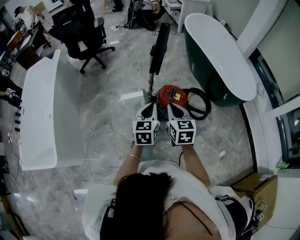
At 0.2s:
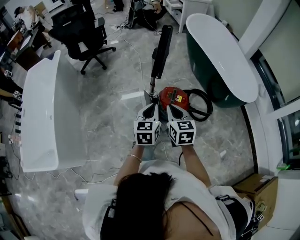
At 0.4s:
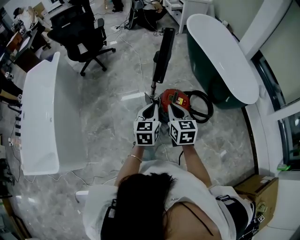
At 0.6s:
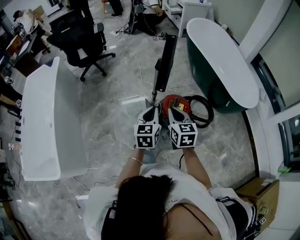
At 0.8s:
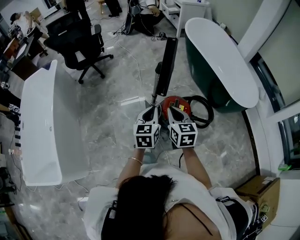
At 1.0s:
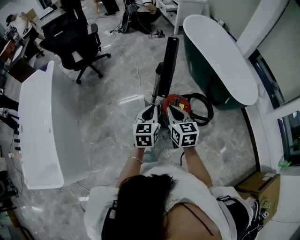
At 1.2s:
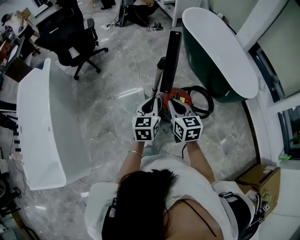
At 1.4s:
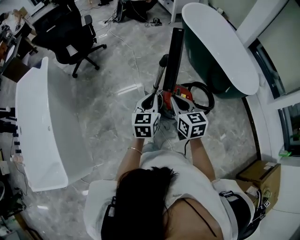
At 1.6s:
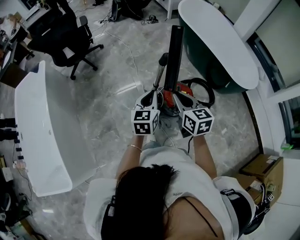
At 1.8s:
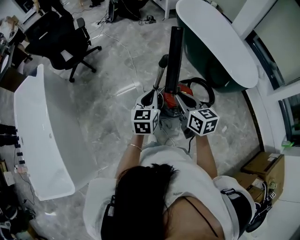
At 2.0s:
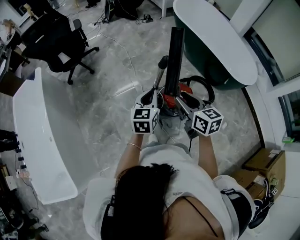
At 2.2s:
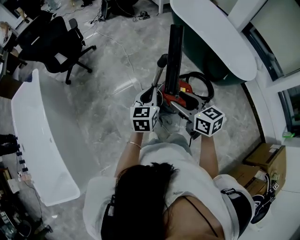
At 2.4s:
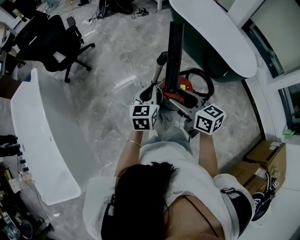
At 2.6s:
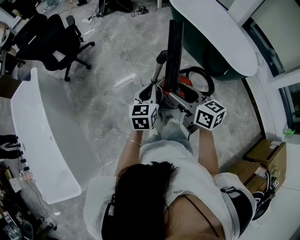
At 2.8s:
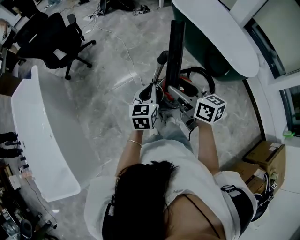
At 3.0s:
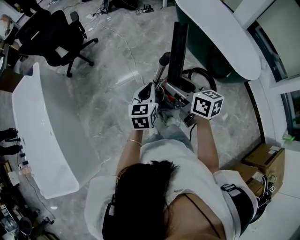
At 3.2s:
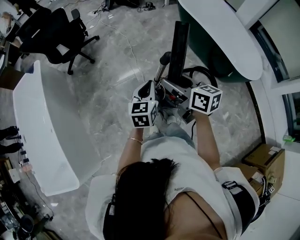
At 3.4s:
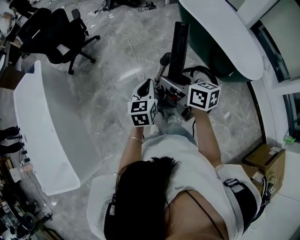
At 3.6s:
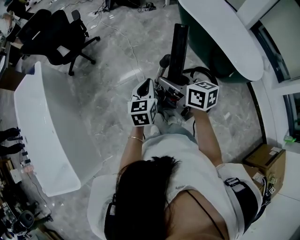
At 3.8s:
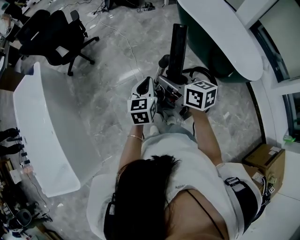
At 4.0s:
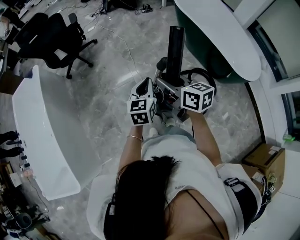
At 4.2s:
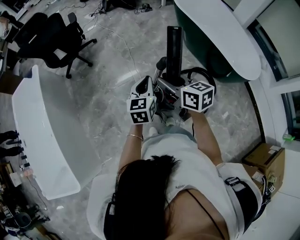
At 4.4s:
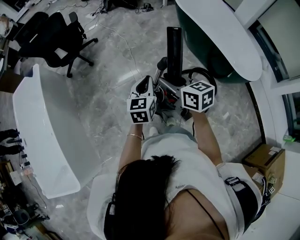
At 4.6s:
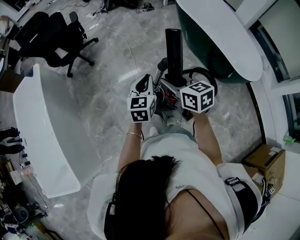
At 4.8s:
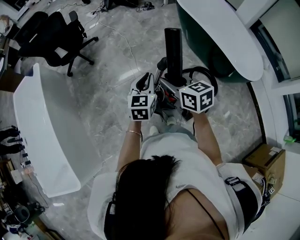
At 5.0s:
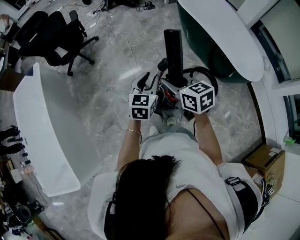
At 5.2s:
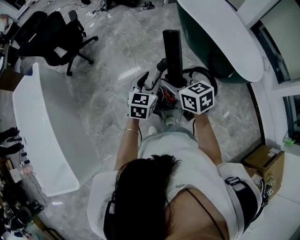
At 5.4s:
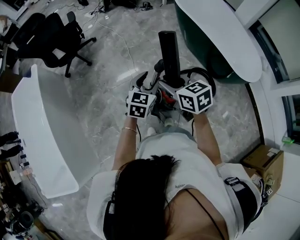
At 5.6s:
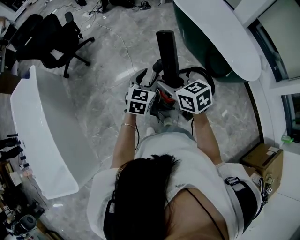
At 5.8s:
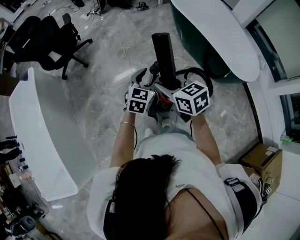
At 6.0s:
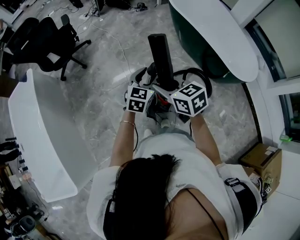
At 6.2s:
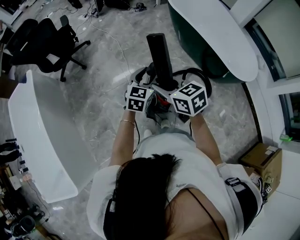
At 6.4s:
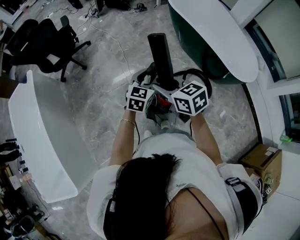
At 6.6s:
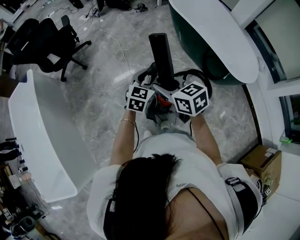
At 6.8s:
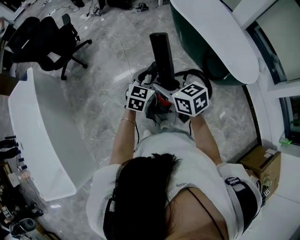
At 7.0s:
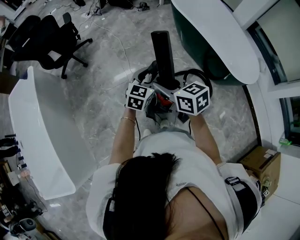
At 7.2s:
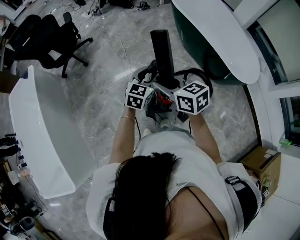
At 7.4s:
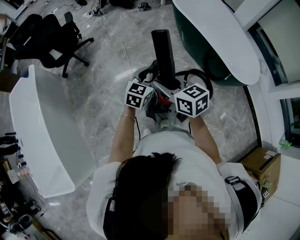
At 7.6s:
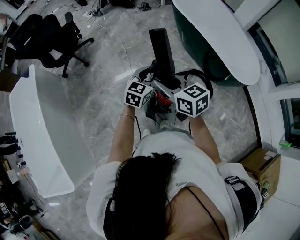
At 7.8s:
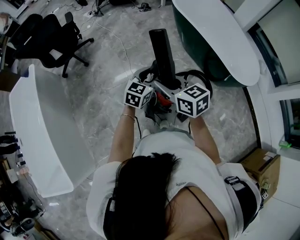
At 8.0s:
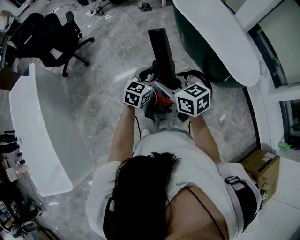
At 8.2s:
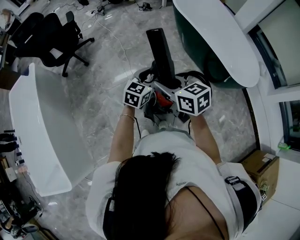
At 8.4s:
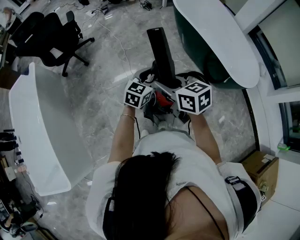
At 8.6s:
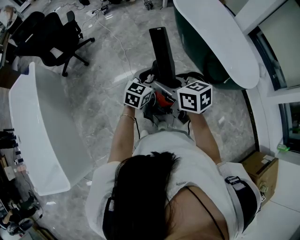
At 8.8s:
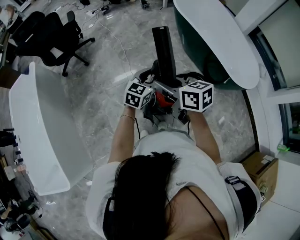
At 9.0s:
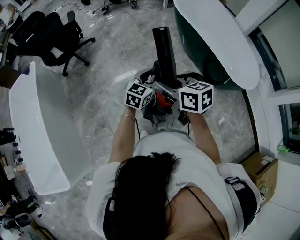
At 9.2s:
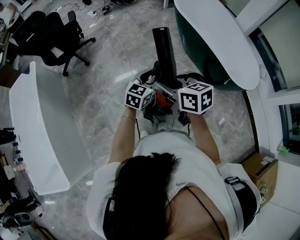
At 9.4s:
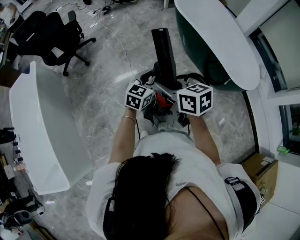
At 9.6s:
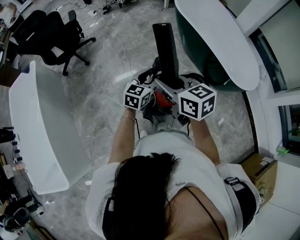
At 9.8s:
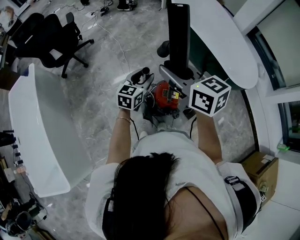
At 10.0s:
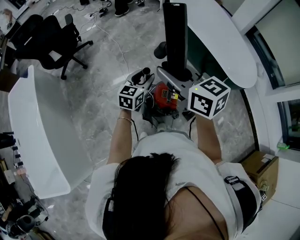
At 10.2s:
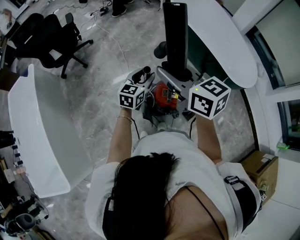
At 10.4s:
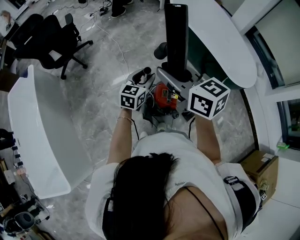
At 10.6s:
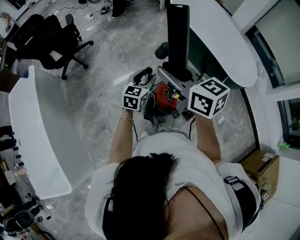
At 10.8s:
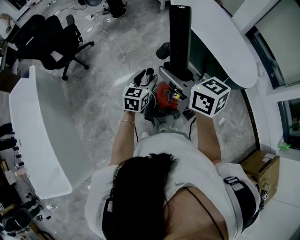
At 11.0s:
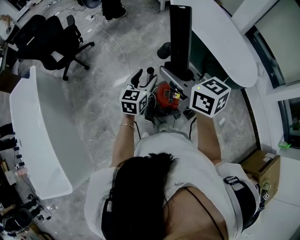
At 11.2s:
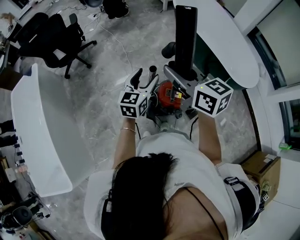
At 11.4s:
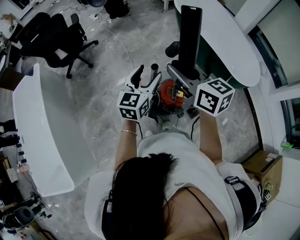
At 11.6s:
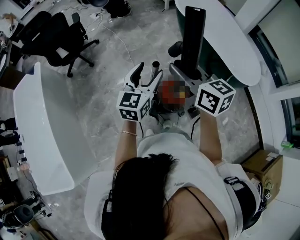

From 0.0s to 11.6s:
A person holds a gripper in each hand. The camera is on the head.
From 0.0s to 1.4s: The two grippers go some 15 cm forward and to the left.
From 1.4s to 2.8s: The grippers both shift forward by approximately 5 cm. The right gripper turns by some 20 degrees, and opens up.
From 2.8s to 4.4s: The two grippers go some 5 cm forward. The right gripper closes its fingers.
From 4.4s to 5.8s: The left gripper shifts approximately 5 cm to the right, rotates approximately 20 degrees, and opens up.
From 5.8s to 8.8s: The grippers make only small movements.
From 8.8s to 10.2s: The right gripper shifts roughly 10 cm upward.
From 10.2s to 11.6s: The left gripper is displaced upward and backward by some 15 cm, and opens.

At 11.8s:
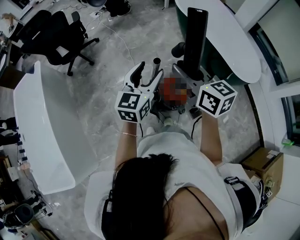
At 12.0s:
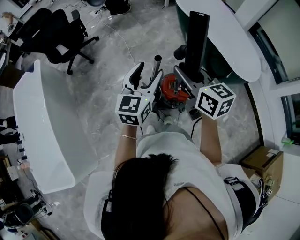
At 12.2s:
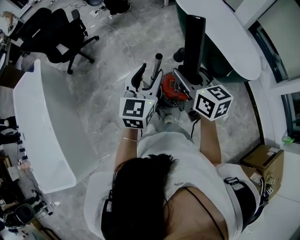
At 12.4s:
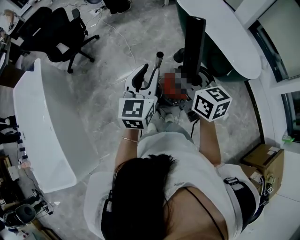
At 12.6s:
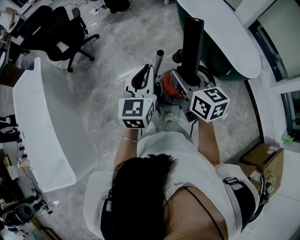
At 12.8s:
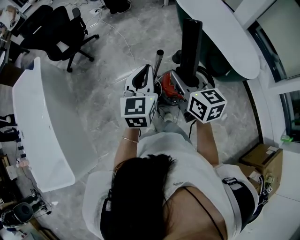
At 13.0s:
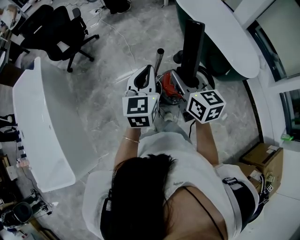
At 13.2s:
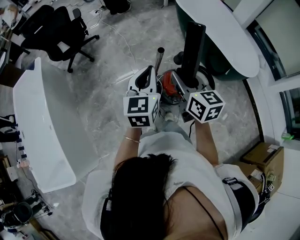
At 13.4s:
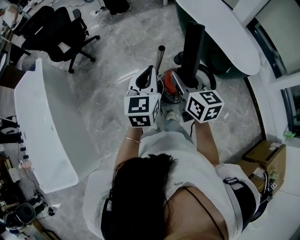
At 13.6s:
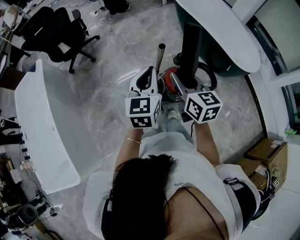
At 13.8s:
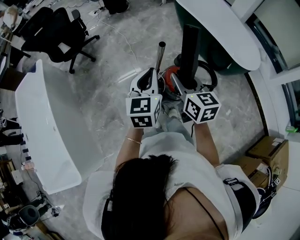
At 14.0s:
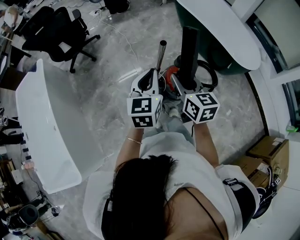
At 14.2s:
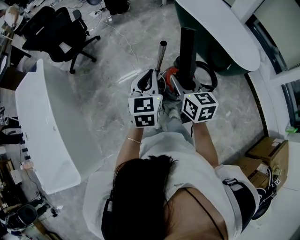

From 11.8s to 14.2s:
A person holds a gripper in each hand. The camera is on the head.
From 11.8s to 13.0s: The grippers both shift backward by roughly 5 cm. The left gripper closes its fingers.
From 13.0s to 14.2s: The left gripper shifts by some 5 cm, while the right gripper changes place by some 5 cm.

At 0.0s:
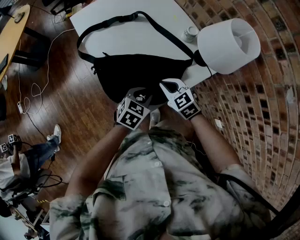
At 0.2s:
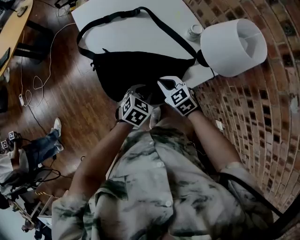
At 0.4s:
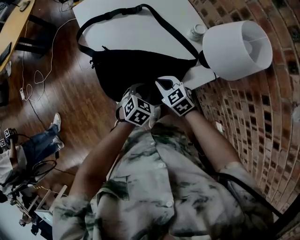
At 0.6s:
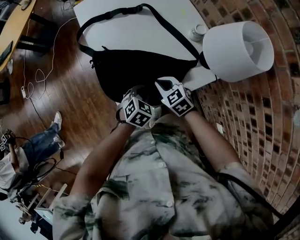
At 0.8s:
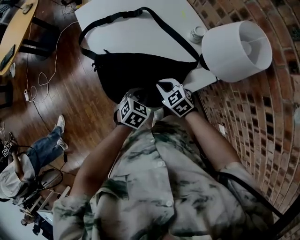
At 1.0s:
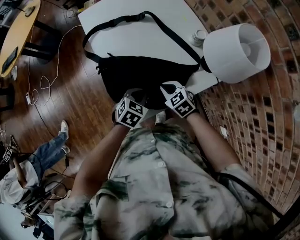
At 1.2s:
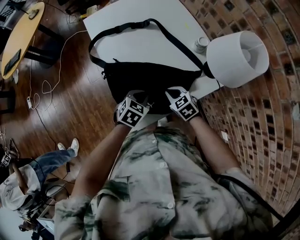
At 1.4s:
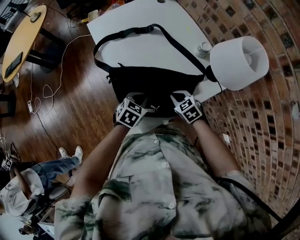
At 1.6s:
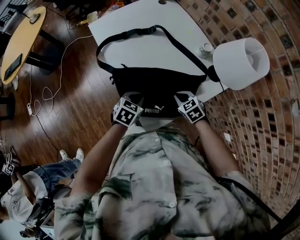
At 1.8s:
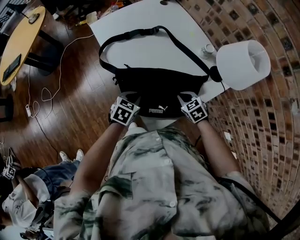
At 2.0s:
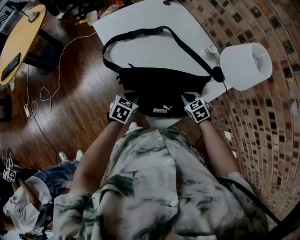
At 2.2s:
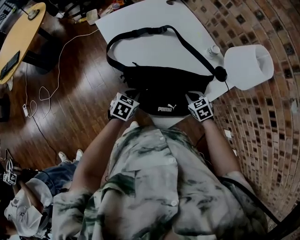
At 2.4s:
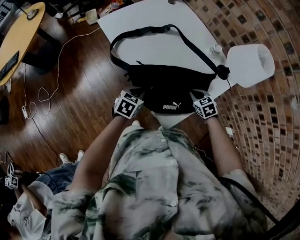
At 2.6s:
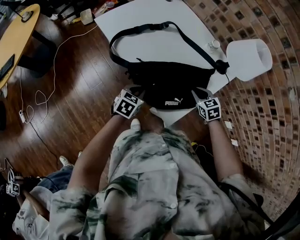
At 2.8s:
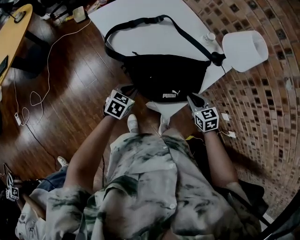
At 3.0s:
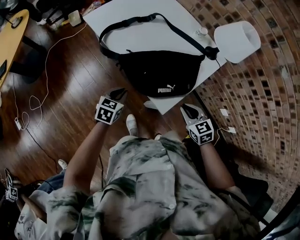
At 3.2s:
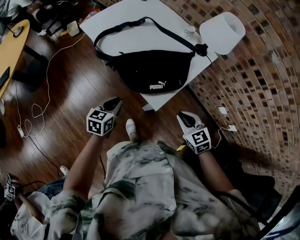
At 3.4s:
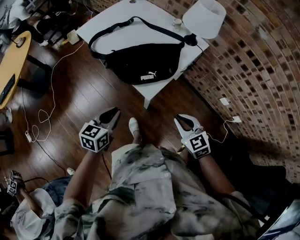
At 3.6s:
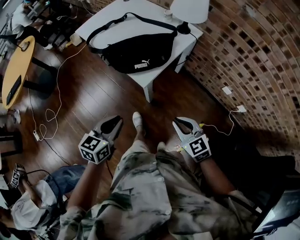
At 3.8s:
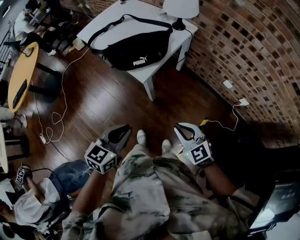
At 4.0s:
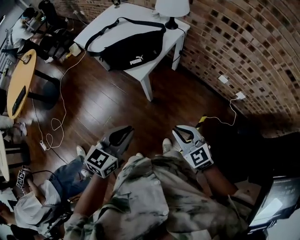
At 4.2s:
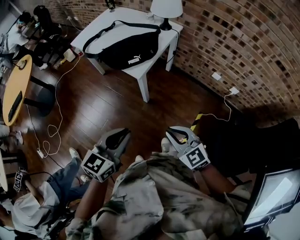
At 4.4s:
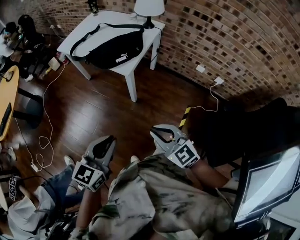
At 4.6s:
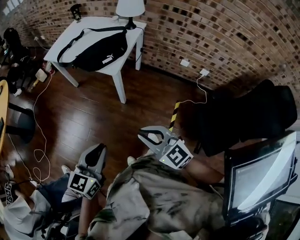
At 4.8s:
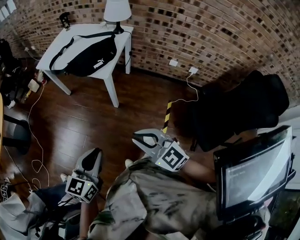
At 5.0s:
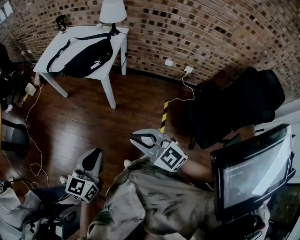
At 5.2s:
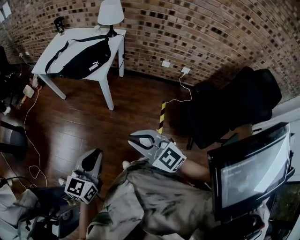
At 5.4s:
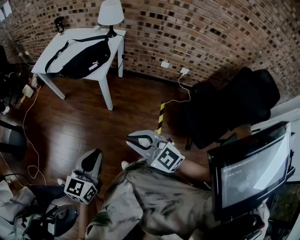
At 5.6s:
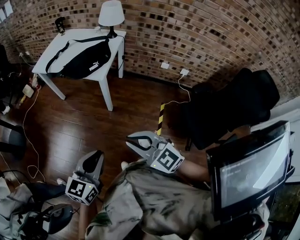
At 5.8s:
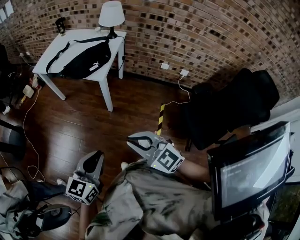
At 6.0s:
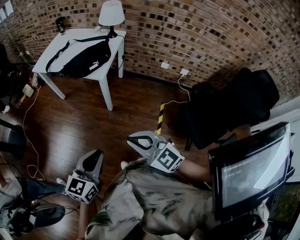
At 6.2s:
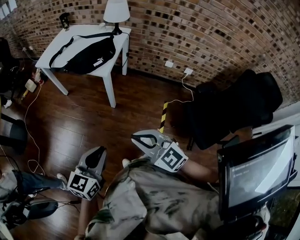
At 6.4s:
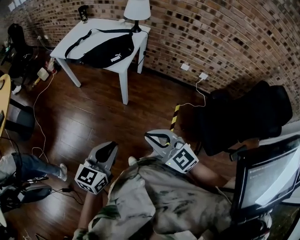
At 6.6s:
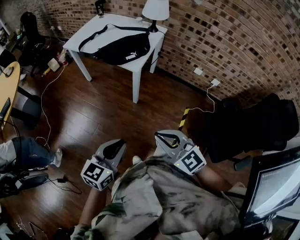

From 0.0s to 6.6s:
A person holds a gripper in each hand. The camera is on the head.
From 0.0s to 1.6s: The right gripper heads downward, covering approximately 5 cm. The left gripper is displaced to the left and forward by about 10 cm.
From 1.6s to 3.2s: The right gripper travels backward and upward by some 25 cm, and turns by some 20 degrees. Meanwhile the left gripper heads backward and to the left, covering roughly 20 cm.
From 3.2s to 5.0s: Both grippers are carried backward, approximately 40 cm. Both grippers travel together upward, some 20 cm. The left gripper rotates approximately 30 degrees, while the right gripper rotates roughly 20 degrees.
From 5.0s to 6.6s: The grippers stay close to where they were, moving slightly.

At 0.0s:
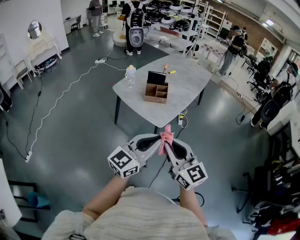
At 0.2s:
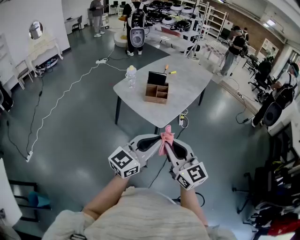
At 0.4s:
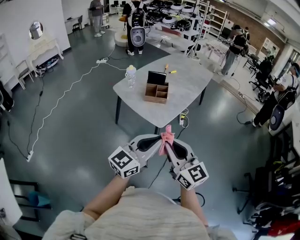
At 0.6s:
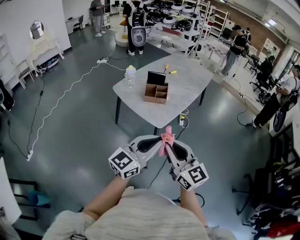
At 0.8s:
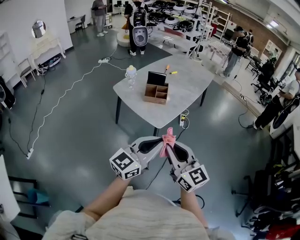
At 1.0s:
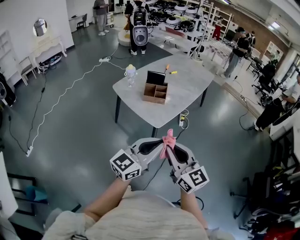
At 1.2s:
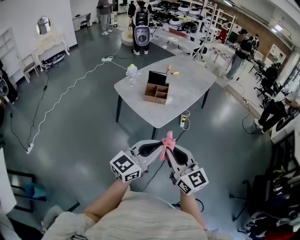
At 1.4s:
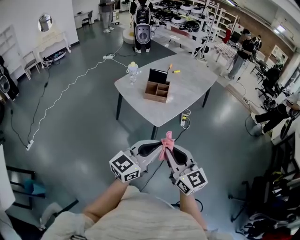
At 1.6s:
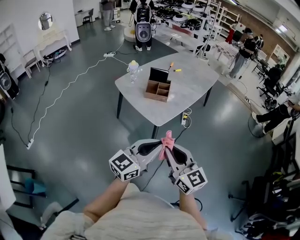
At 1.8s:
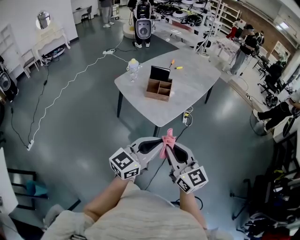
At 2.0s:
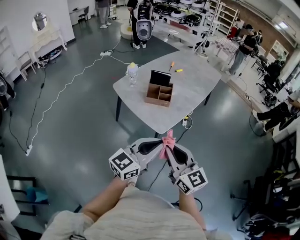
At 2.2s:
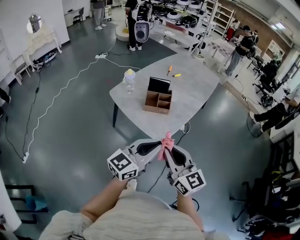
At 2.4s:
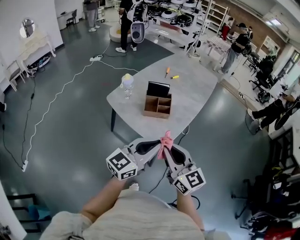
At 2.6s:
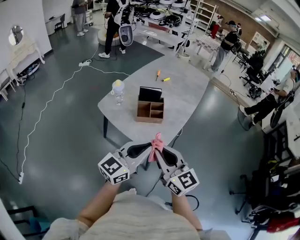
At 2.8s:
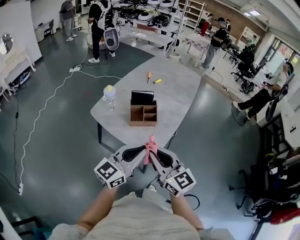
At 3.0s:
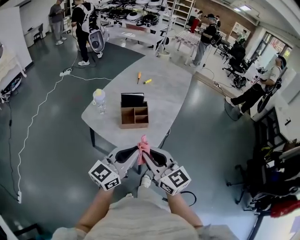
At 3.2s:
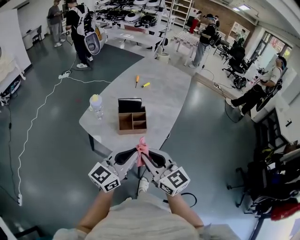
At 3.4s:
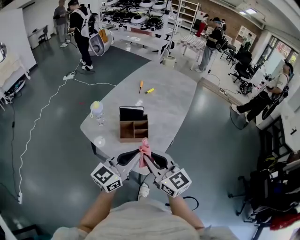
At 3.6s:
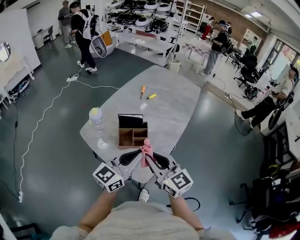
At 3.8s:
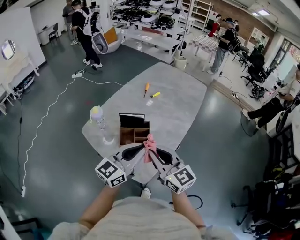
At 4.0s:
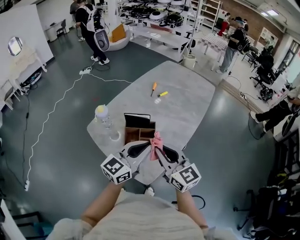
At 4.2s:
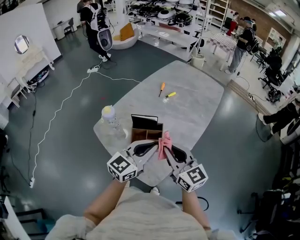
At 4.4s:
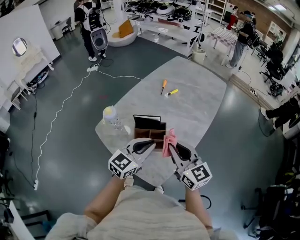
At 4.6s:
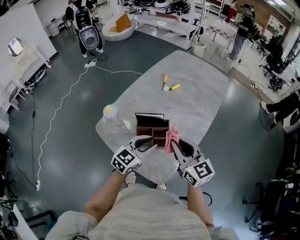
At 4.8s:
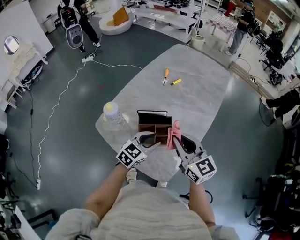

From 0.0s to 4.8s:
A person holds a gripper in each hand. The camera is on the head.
From 0.0s to 1.6s: Both grippers move to the right, roughly 5 cm.
From 1.6s to 3.2s: Both grippers move forward and to the left, approximately 30 cm.
From 3.2s to 4.8s: The right gripper is displaced forward by roughly 25 cm; the left gripper is displaced forward and downward by about 30 cm, angles its fingers downward, by some 30 degrees, and opens.
